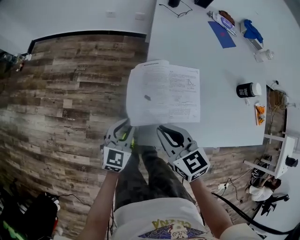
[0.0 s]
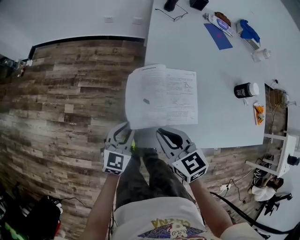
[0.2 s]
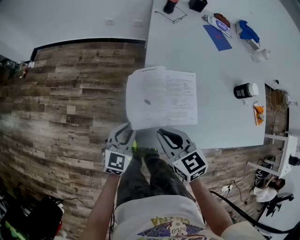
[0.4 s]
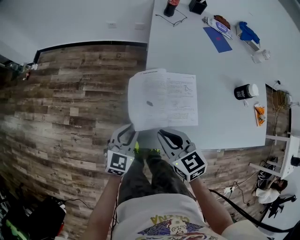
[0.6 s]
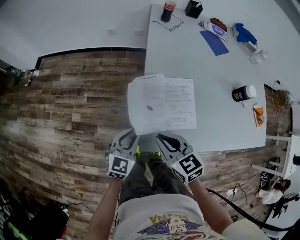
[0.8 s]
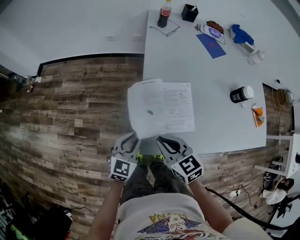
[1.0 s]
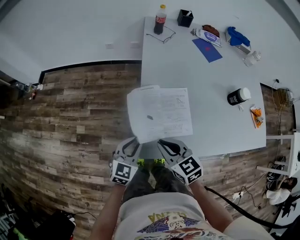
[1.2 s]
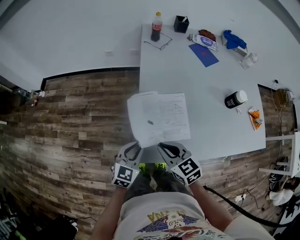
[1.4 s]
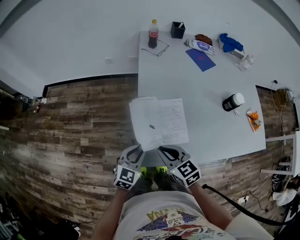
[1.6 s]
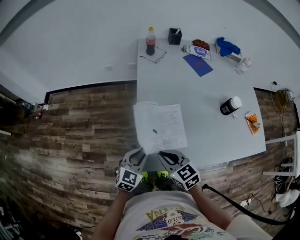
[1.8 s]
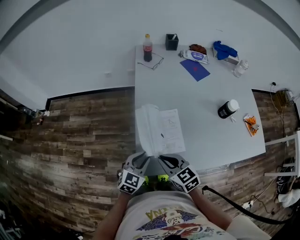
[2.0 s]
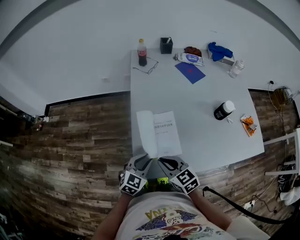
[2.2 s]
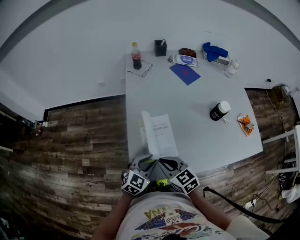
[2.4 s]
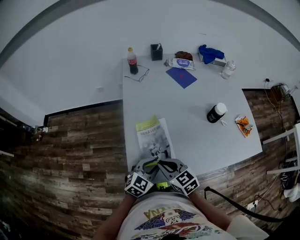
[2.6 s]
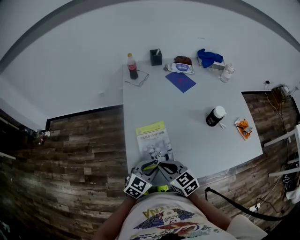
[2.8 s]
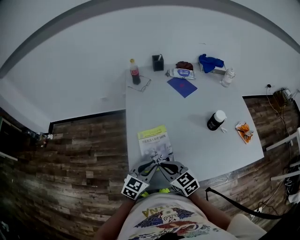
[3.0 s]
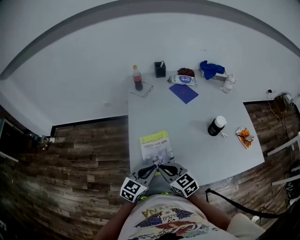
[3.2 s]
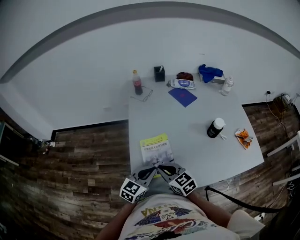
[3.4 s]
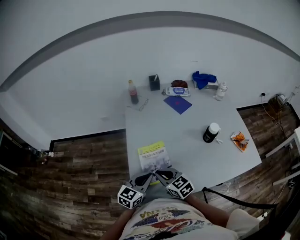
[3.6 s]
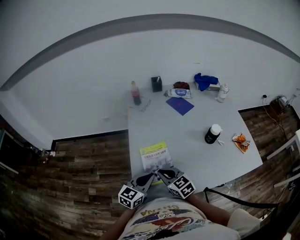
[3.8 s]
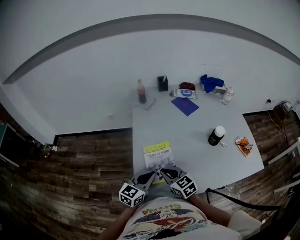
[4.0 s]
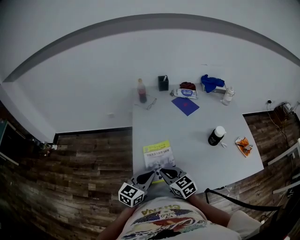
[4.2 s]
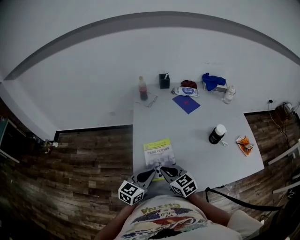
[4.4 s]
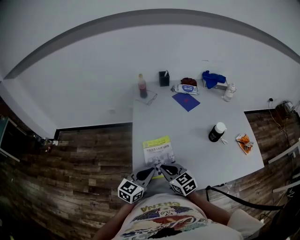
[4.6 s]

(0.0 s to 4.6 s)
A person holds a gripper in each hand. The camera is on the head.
0.0 s - 1.6 s: The left gripper moves upward and to the right, approximately 10 cm; the right gripper moves to the right, roughly 5 cm.
1.6 s - 3.0 s: The grippers both shift to the right by about 15 cm.
3.0 s - 4.6 s: The left gripper moves upward, about 5 cm.

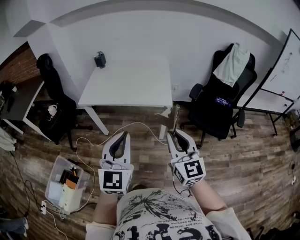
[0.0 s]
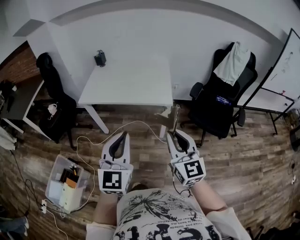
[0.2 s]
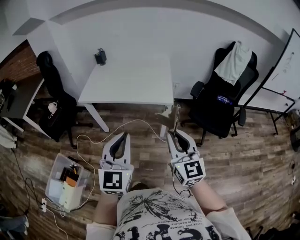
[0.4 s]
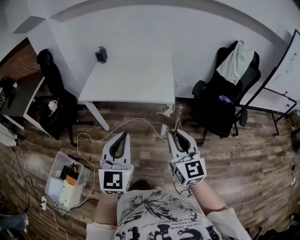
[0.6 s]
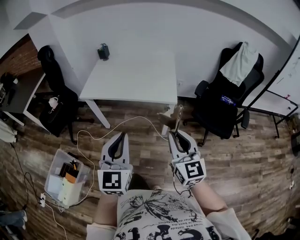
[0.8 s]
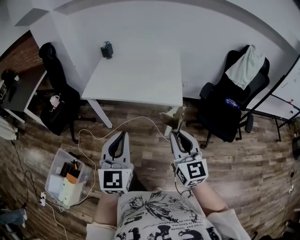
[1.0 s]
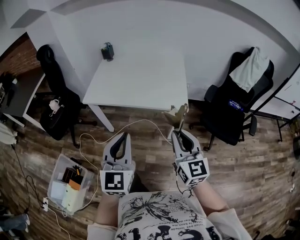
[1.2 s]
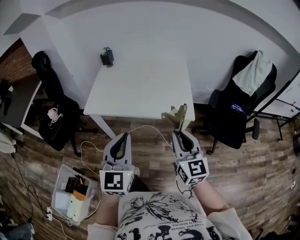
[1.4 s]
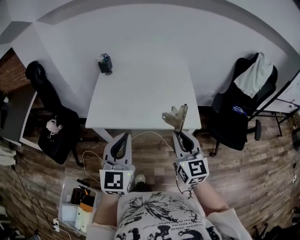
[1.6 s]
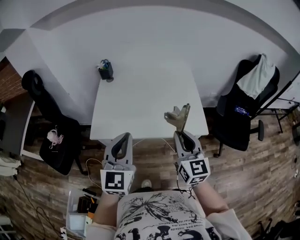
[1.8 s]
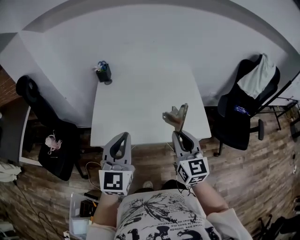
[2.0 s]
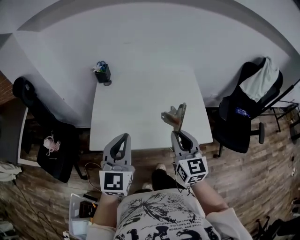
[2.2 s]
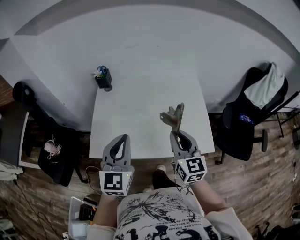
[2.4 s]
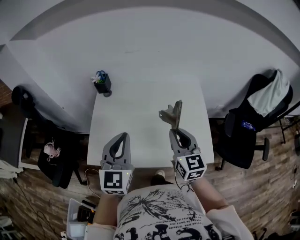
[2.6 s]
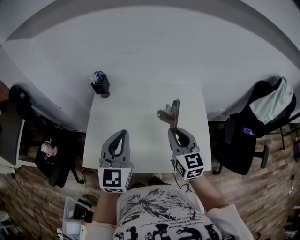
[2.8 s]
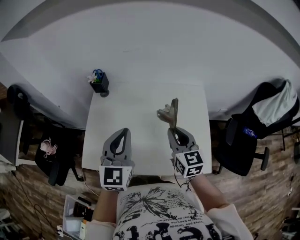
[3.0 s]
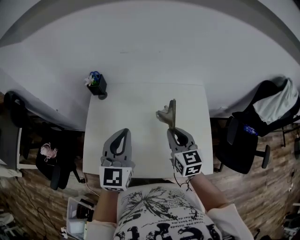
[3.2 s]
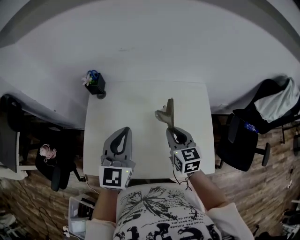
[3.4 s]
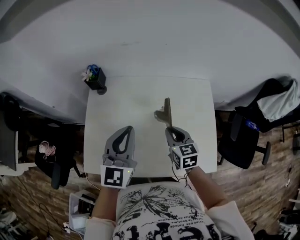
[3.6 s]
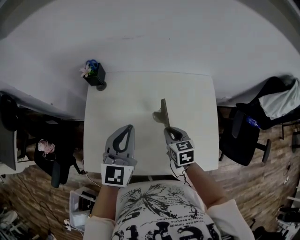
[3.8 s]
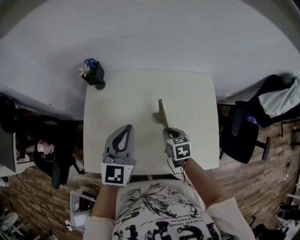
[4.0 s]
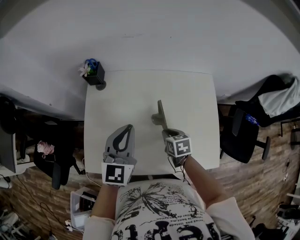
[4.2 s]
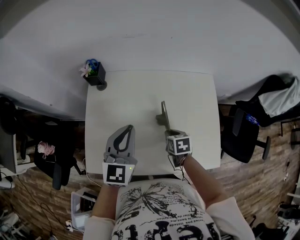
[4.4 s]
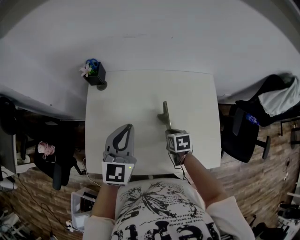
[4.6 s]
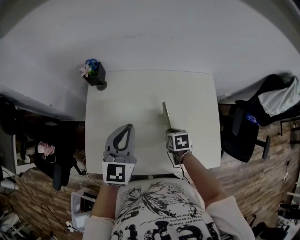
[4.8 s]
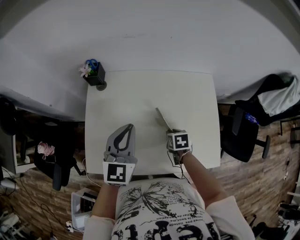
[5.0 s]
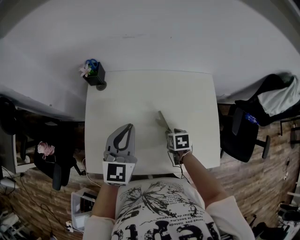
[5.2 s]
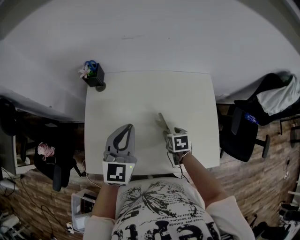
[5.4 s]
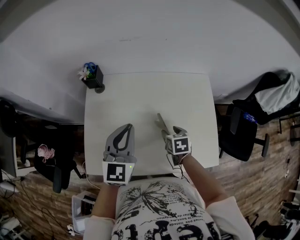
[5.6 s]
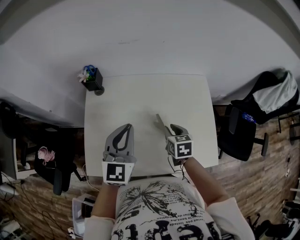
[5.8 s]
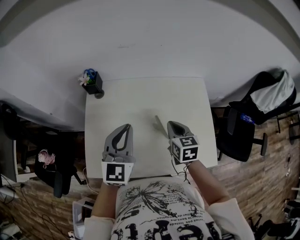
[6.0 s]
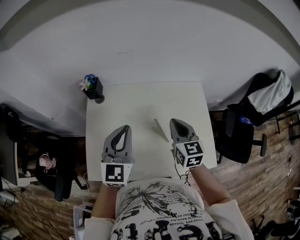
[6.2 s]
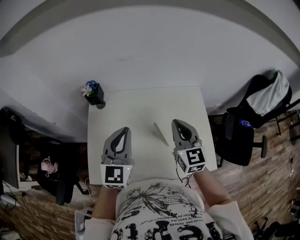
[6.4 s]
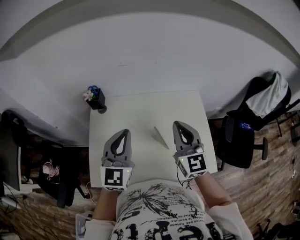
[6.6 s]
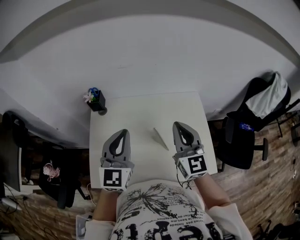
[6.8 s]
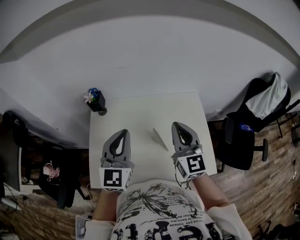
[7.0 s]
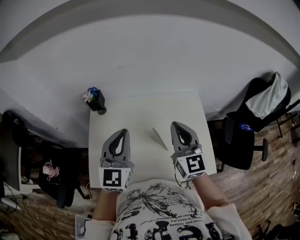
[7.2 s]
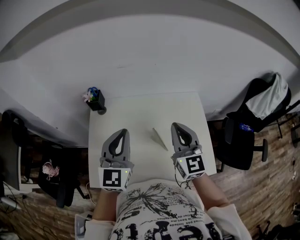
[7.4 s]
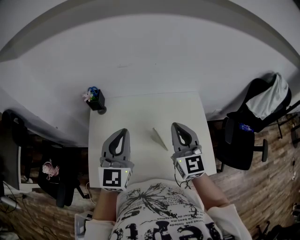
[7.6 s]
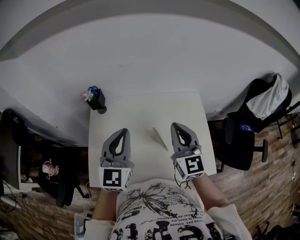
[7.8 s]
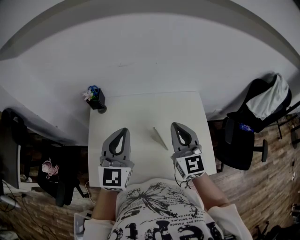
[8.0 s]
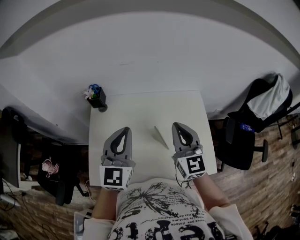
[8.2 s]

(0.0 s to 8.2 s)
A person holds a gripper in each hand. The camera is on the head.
0.0 s - 1.6 s: Both grippers move forward and to the left, approximately 30 cm.
1.6 s - 3.2 s: The grippers both shift forward by roughly 35 cm.
3.2 s - 5.0 s: The right gripper is displaced downward by roughly 20 cm, and tilts its fingers some 50 degrees downward. The left gripper goes roughly 5 cm downward.
5.0 s - 6.6 s: The right gripper heads upward, covering roughly 35 cm, tips its fingers upward by roughly 60 degrees, and closes. Meanwhile the left gripper is displaced upward by some 10 cm.
6.6 s - 8.2 s: The grippers stay close to where they were, moving slightly.

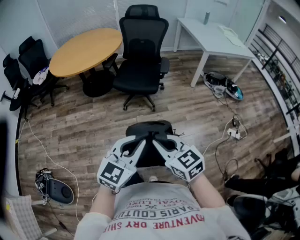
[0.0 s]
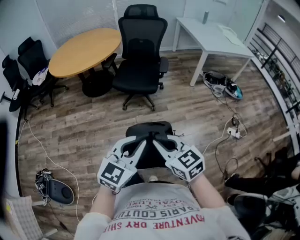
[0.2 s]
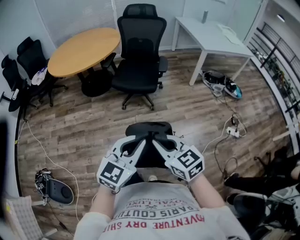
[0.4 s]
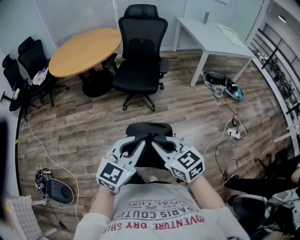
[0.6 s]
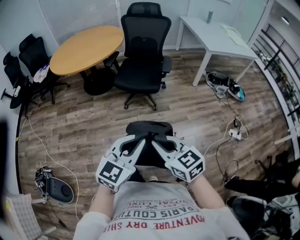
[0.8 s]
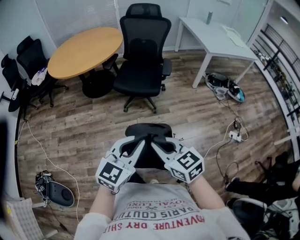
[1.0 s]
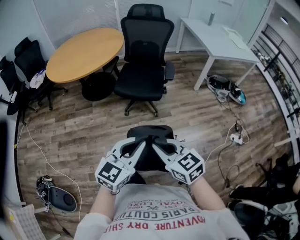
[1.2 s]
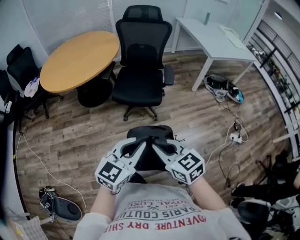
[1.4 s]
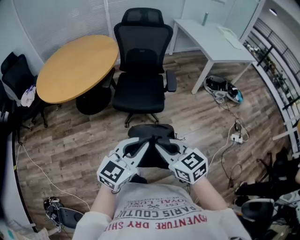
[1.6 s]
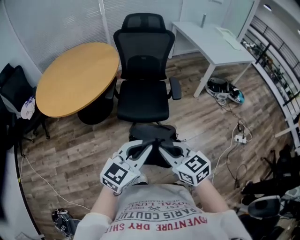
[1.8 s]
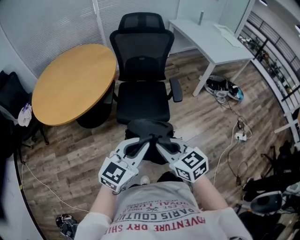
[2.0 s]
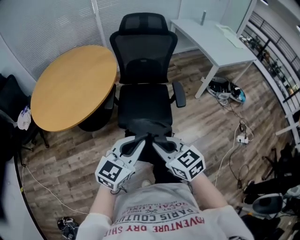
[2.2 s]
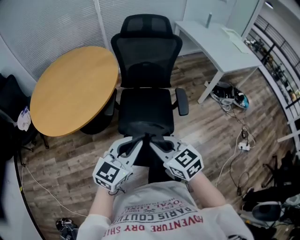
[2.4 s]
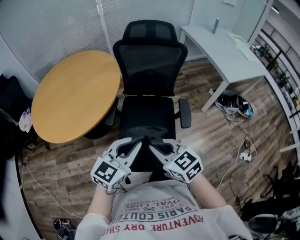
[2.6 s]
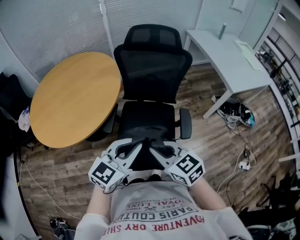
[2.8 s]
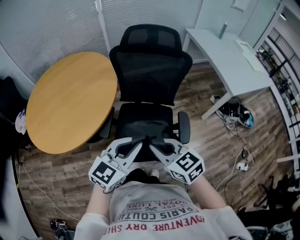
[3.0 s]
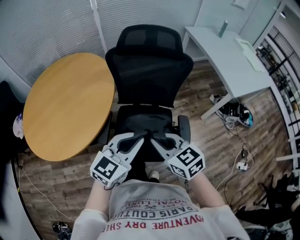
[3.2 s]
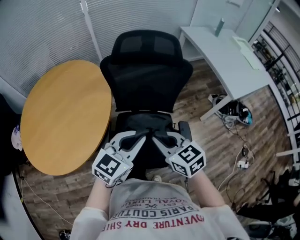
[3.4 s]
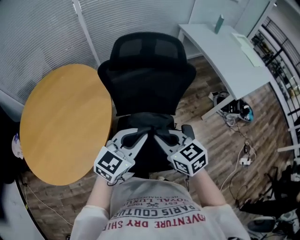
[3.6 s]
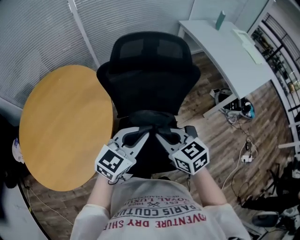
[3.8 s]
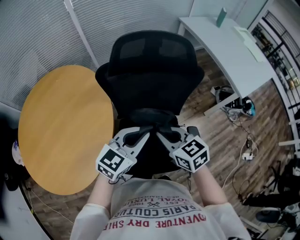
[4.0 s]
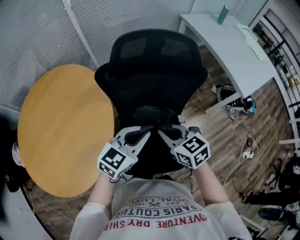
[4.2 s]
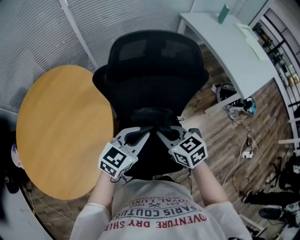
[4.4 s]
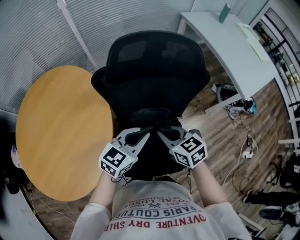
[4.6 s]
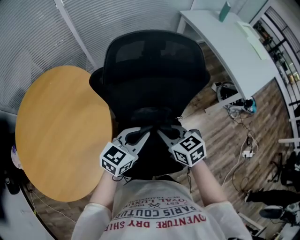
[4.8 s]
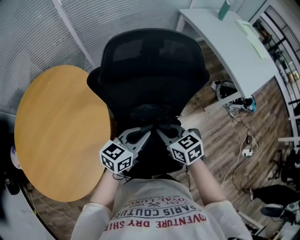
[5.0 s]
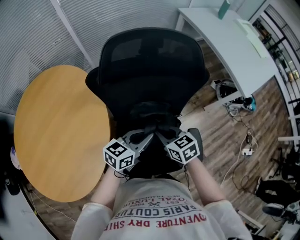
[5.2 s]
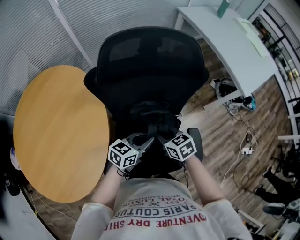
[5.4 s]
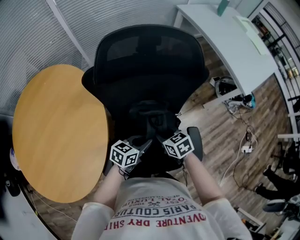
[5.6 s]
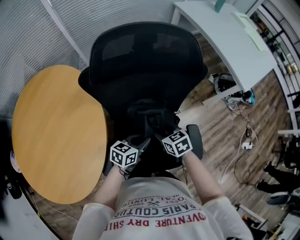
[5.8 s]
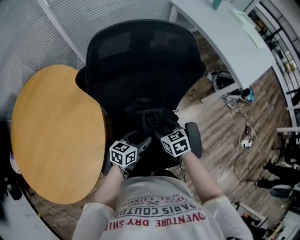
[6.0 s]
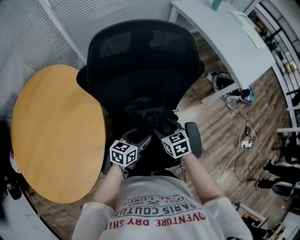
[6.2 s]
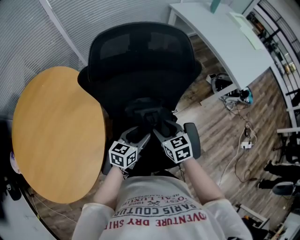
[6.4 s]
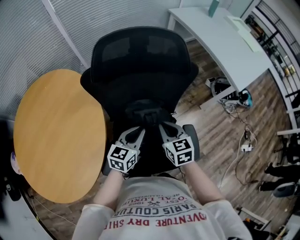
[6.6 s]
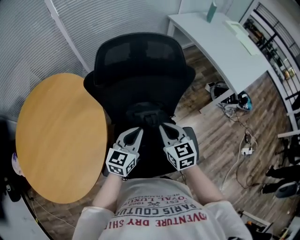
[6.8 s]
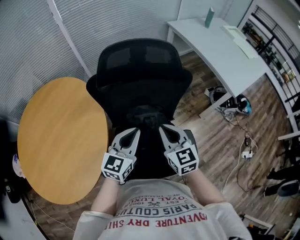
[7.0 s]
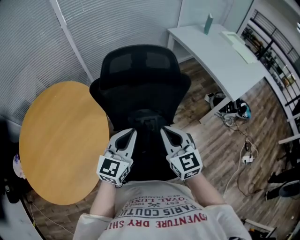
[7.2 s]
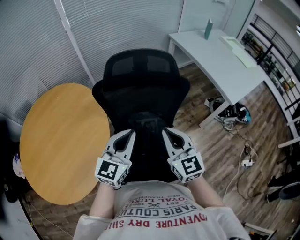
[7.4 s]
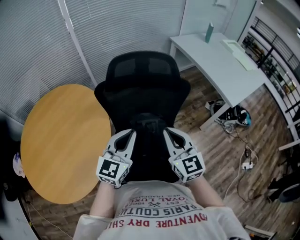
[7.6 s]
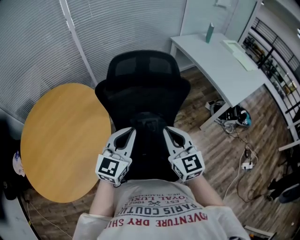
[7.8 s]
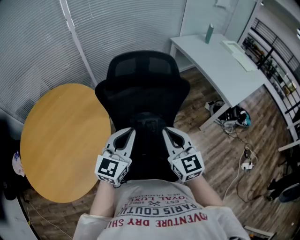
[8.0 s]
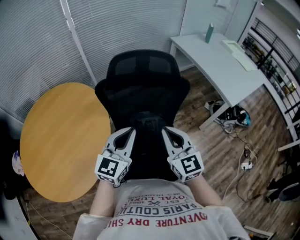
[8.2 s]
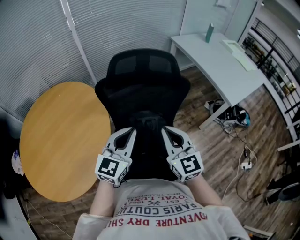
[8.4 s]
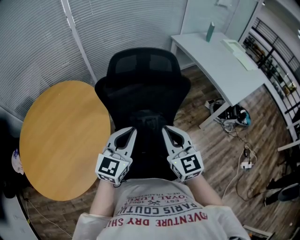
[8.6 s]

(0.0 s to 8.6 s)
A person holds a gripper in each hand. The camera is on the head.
0.0 s - 1.4 s: The grippers both shift forward by some 15 cm.
1.4 s - 2.8 s: The two grippers travel together, forward, some 40 cm.
2.8 s - 4.4 s: Both grippers move forward, some 35 cm.
4.4 s - 5.8 s: Both grippers travel together downward, roughly 15 cm. The right gripper opens. The left gripper rotates about 30 degrees.
5.8 s - 7.2 s: Both grippers move upward, about 25 cm. The left gripper swivels approximately 40 degrees, and opens and closes again. The right gripper tilts its fingers approximately 30 degrees upward, and closes up.
7.2 s - 8.6 s: The grippers make only small movements.

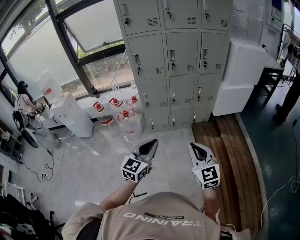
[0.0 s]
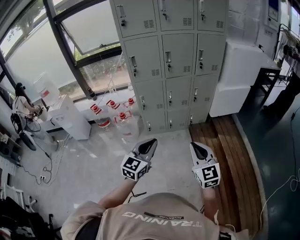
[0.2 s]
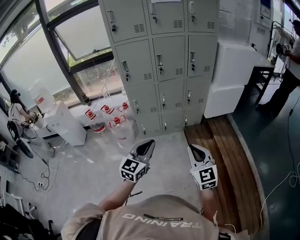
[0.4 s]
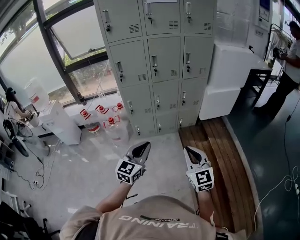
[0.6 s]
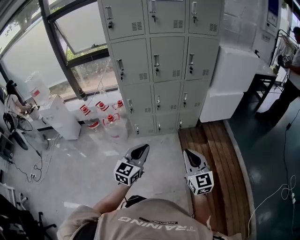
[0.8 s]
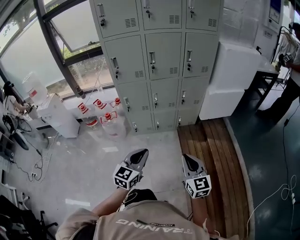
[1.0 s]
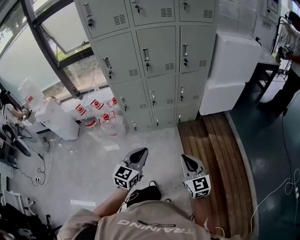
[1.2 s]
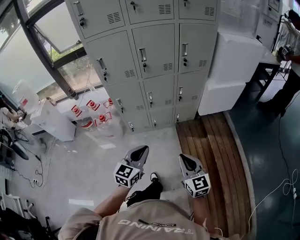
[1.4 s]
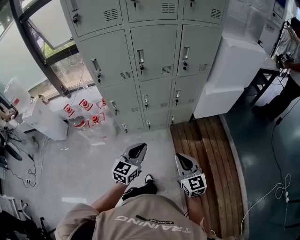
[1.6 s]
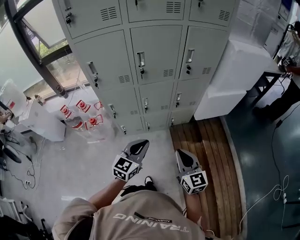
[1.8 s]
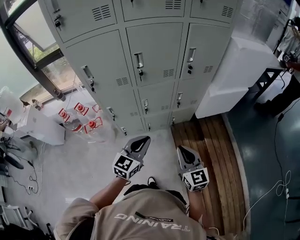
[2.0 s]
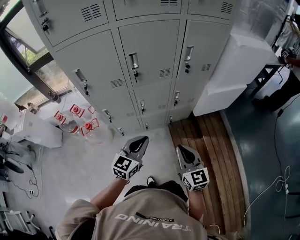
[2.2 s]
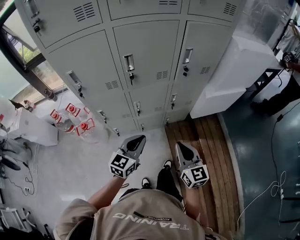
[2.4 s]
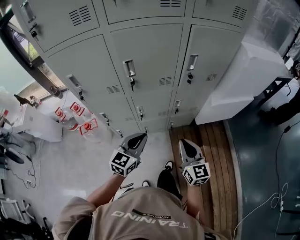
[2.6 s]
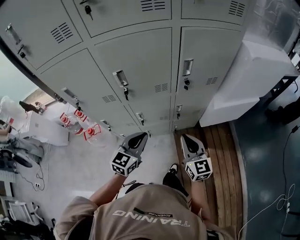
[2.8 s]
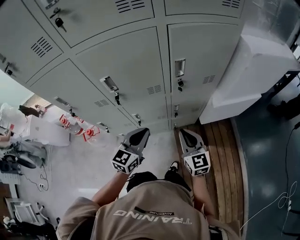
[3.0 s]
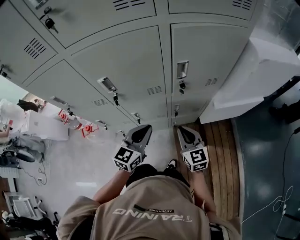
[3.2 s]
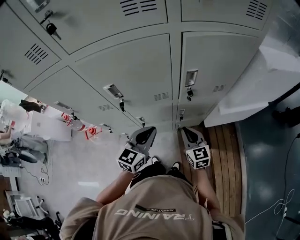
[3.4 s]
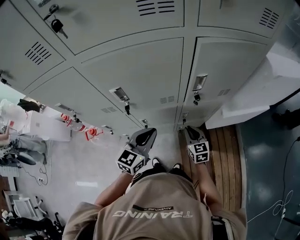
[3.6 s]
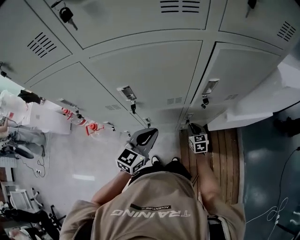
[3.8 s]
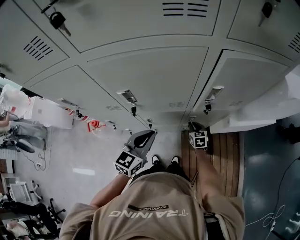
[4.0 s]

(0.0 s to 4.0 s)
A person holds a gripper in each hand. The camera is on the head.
0.0 s - 1.4 s: The grippers both shift forward, to the right and downward by about 20 cm.
1.4 s - 2.6 s: The two grippers go approximately 30 cm forward.
2.6 s - 4.0 s: The left gripper shifts about 15 cm forward; the right gripper is displaced forward and downward by about 40 cm, and tips its fingers downward by approximately 30 degrees.
